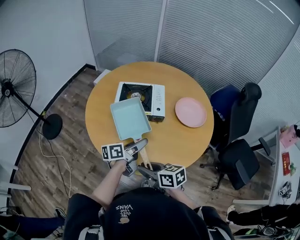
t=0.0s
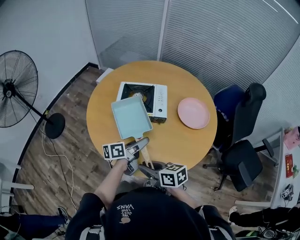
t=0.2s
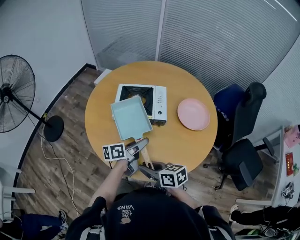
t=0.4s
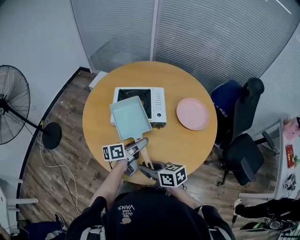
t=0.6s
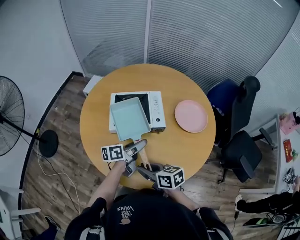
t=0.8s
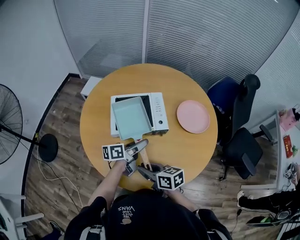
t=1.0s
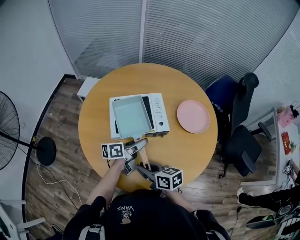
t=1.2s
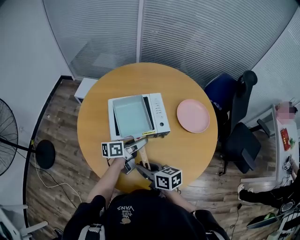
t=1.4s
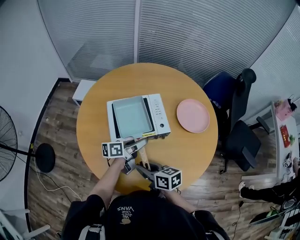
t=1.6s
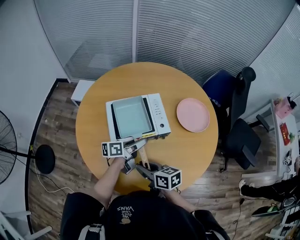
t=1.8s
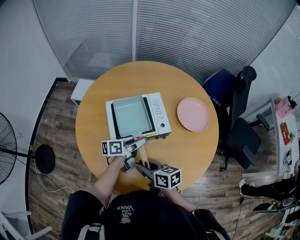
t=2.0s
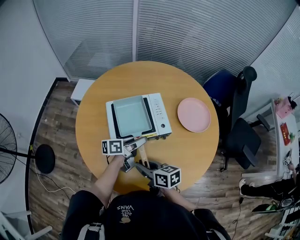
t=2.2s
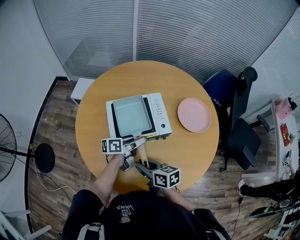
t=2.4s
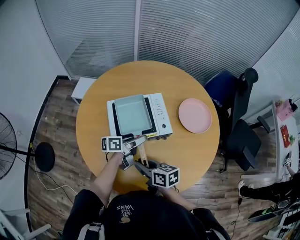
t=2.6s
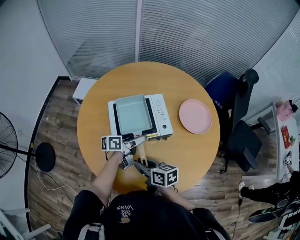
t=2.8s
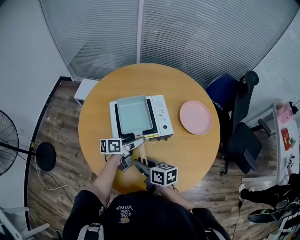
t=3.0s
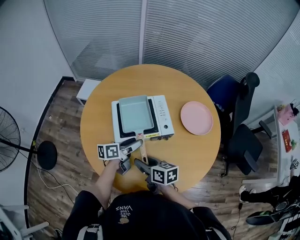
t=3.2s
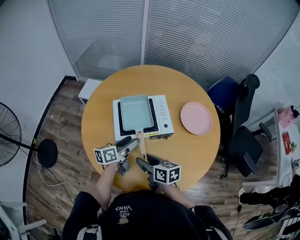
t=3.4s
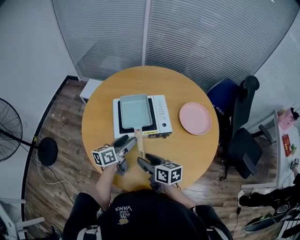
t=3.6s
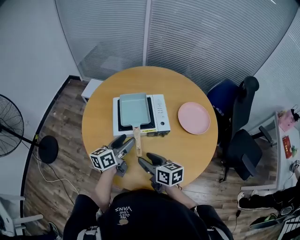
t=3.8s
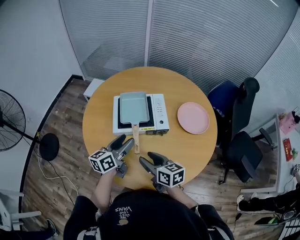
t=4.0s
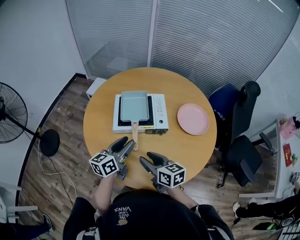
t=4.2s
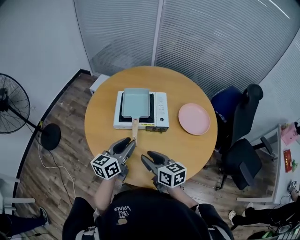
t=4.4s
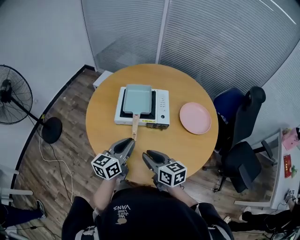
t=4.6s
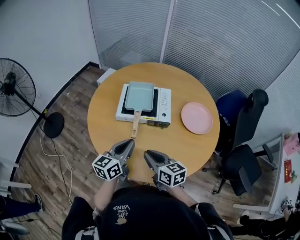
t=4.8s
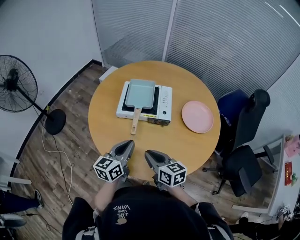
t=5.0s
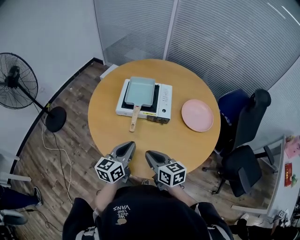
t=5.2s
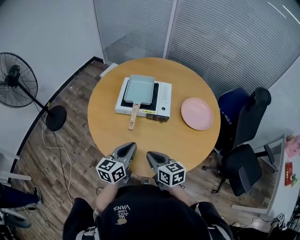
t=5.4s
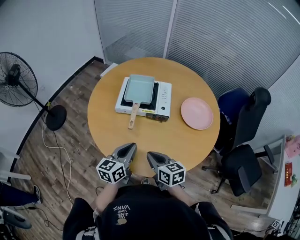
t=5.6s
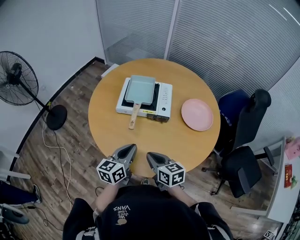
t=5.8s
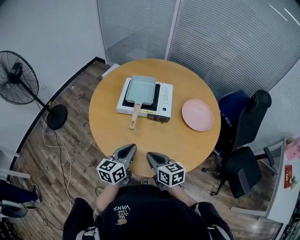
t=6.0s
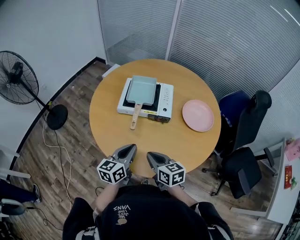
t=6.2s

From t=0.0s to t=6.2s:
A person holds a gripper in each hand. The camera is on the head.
From t=0.0s to t=1.6s: The right gripper travels forward and to the left by some 20 cm, and swivels about 20 degrees; the left gripper shifts about 15 cm forward, and turns by about 20 degrees.
From t=1.6s to t=3.2s: The grippers stay close to where they were, moving slightly.
From t=3.2s to t=4.6s: The right gripper goes some 15 cm backward, to the right and upward, and changes its angle by roughly 20 degrees. Meanwhile the left gripper moves backward and upward, approximately 15 cm, rotates approximately 40 degrees, and closes its fingers.
From t=4.6s to t=6.2s: The right gripper changes place by about 5 cm, and closes. The left gripper is displaced backward by about 5 cm.

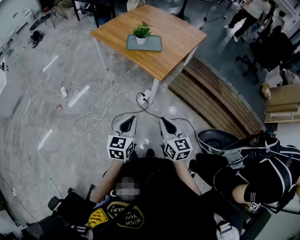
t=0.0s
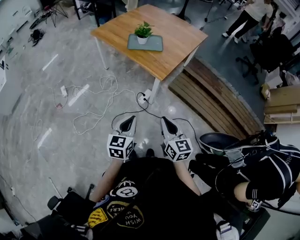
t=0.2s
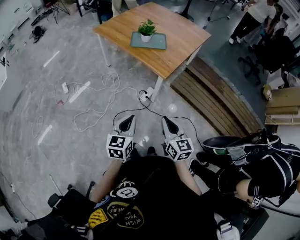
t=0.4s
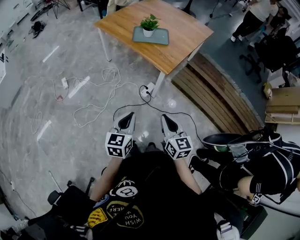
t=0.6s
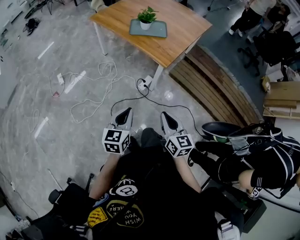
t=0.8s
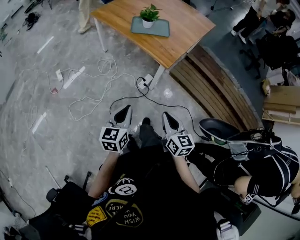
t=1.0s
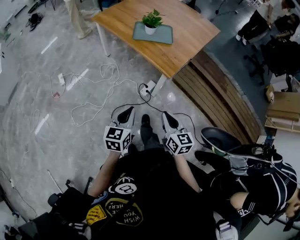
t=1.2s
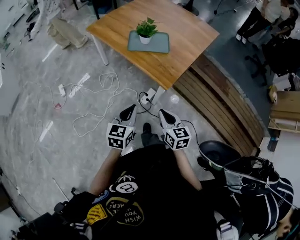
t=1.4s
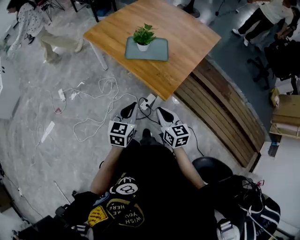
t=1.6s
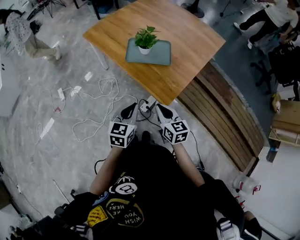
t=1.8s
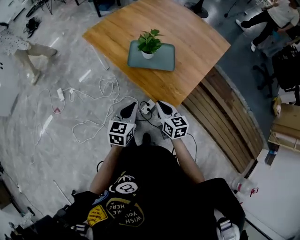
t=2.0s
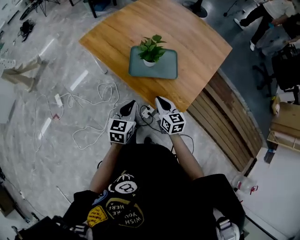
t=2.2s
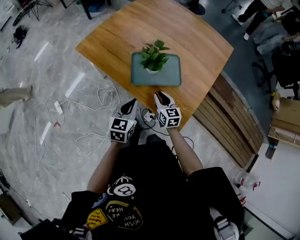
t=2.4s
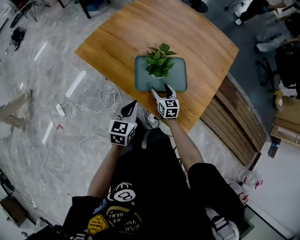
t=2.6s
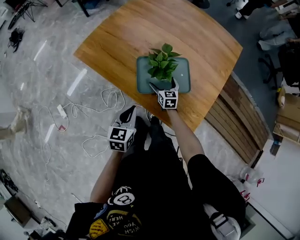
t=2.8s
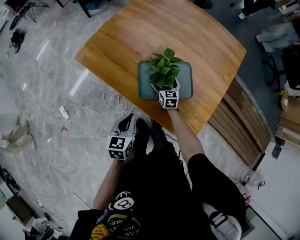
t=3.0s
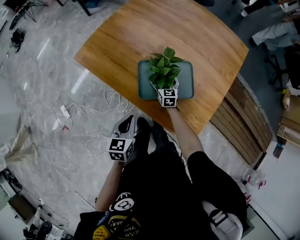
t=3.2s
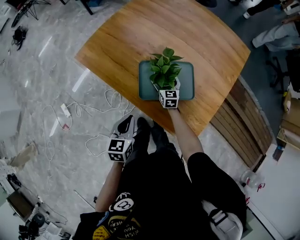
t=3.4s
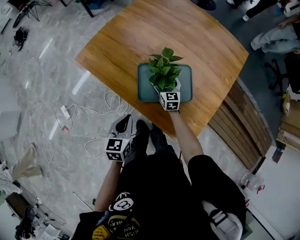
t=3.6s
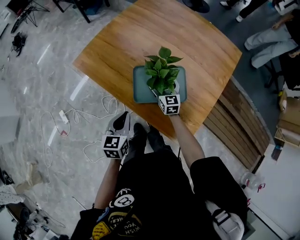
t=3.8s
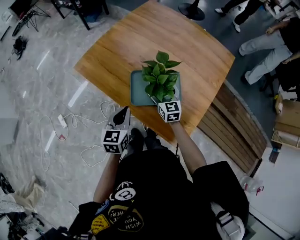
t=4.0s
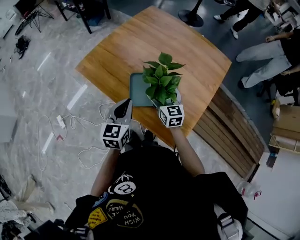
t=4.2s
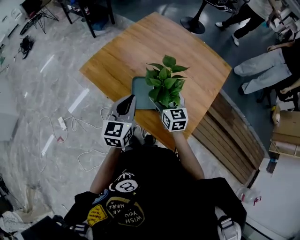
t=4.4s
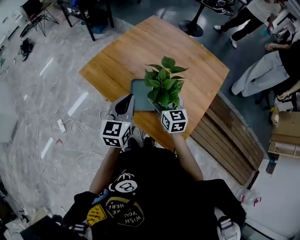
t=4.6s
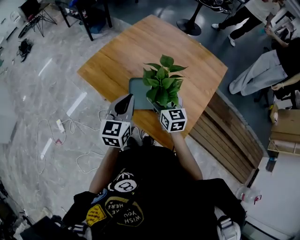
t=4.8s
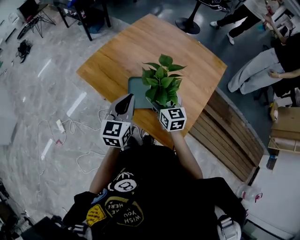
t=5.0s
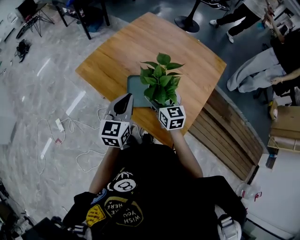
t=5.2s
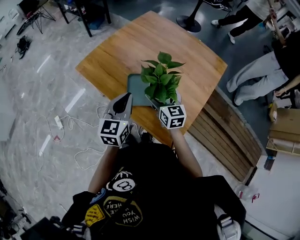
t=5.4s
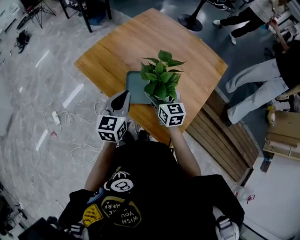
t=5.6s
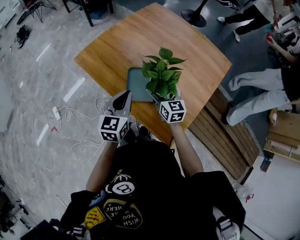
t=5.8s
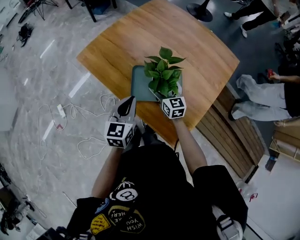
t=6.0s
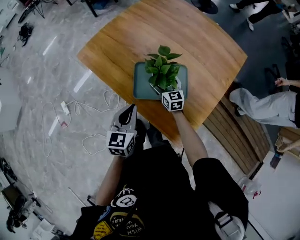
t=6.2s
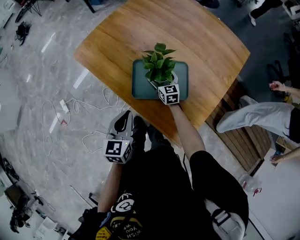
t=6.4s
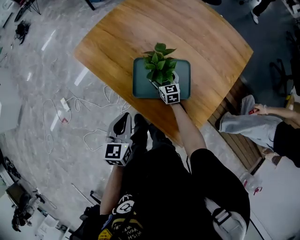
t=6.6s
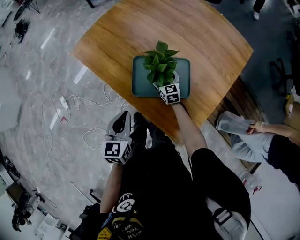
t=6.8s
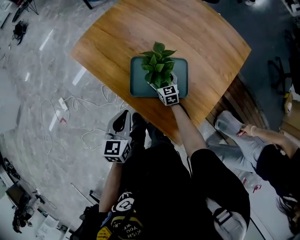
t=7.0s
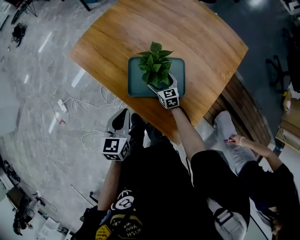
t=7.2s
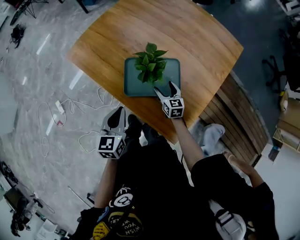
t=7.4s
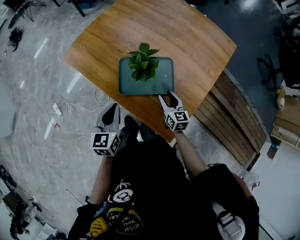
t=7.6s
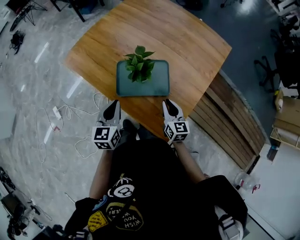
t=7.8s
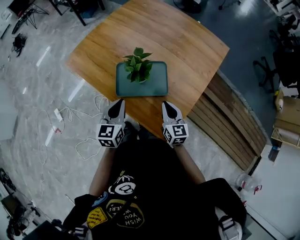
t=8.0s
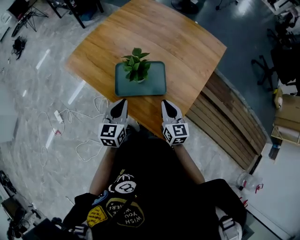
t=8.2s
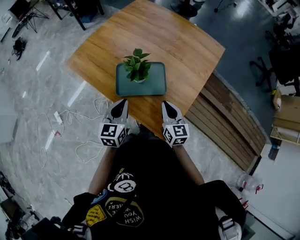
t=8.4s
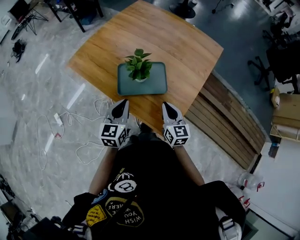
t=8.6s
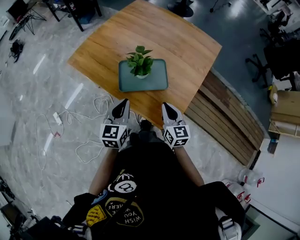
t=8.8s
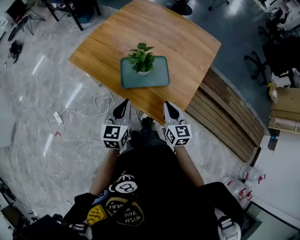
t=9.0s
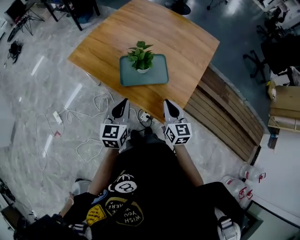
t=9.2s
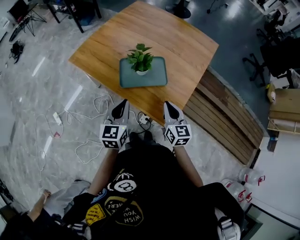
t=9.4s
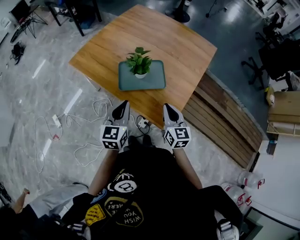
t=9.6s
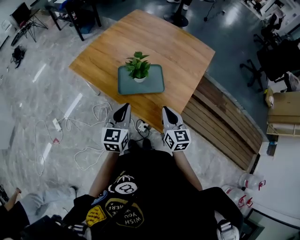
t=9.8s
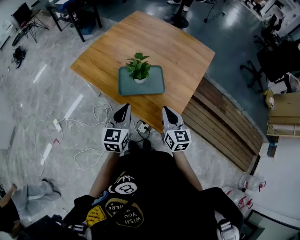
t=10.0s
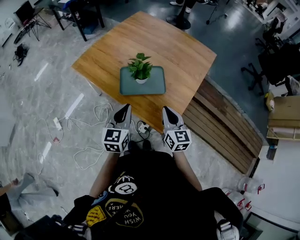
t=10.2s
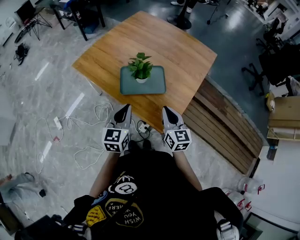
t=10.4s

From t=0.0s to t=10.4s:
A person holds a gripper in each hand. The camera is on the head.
From t=0.0s to t=1.4s: The two grippers go some 20 cm forward.
From t=1.4s to t=3.0s: The two grippers travel together, forward, some 50 cm. The right gripper opens up.
From t=3.0s to t=4.4s: Both grippers travel together upward, some 20 cm. The left gripper swivels approximately 20 degrees.
From t=4.4s to t=6.0s: Both grippers travel together downward, roughly 10 cm.
From t=6.0s to t=7.4s: The right gripper heads downward and to the right, covering some 15 cm; the left gripper moves downward, some 5 cm.
From t=7.4s to t=9.0s: The left gripper travels backward and upward by about 10 cm; the right gripper goes some 30 cm upward and backward, and closes its fingers.
From t=9.0s to t=10.4s: The grippers stay close to where they were, moving slightly.

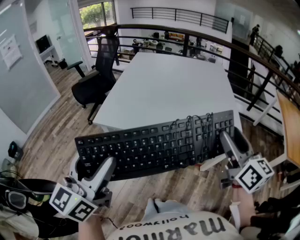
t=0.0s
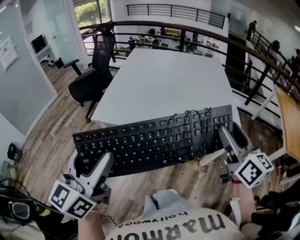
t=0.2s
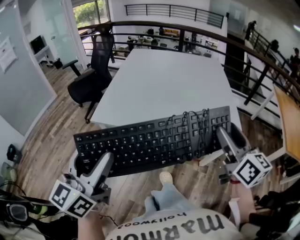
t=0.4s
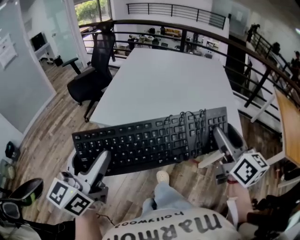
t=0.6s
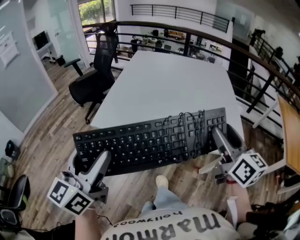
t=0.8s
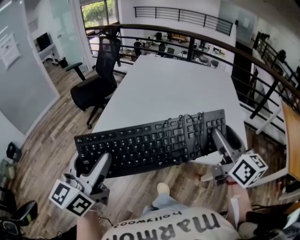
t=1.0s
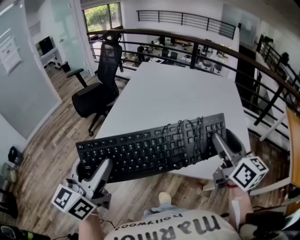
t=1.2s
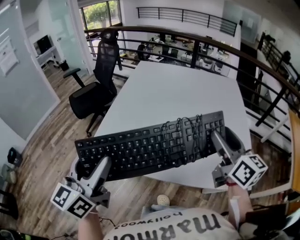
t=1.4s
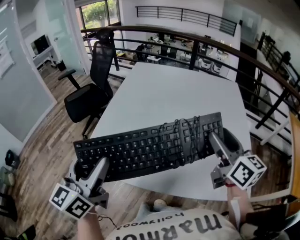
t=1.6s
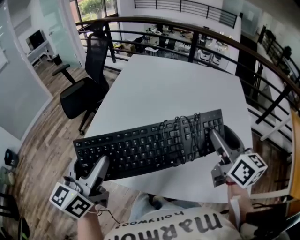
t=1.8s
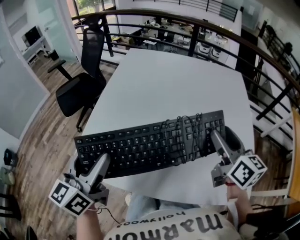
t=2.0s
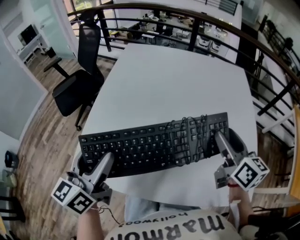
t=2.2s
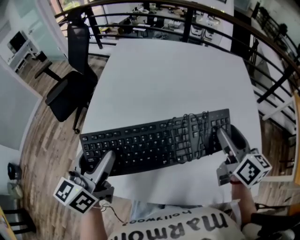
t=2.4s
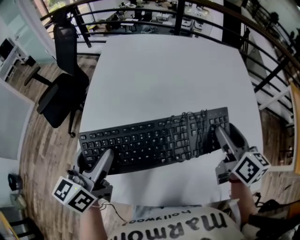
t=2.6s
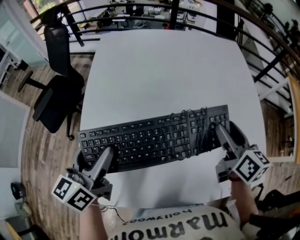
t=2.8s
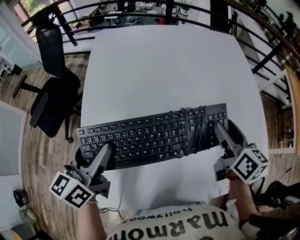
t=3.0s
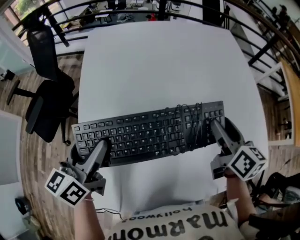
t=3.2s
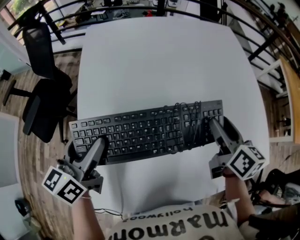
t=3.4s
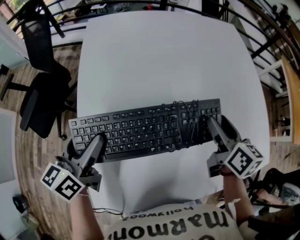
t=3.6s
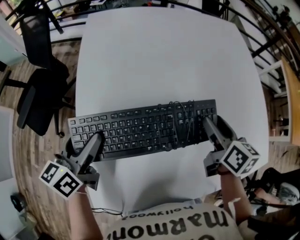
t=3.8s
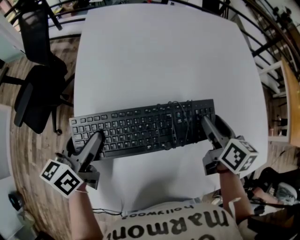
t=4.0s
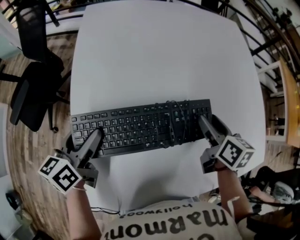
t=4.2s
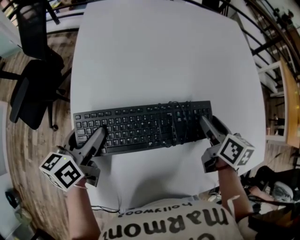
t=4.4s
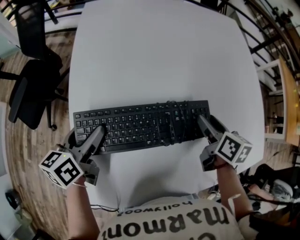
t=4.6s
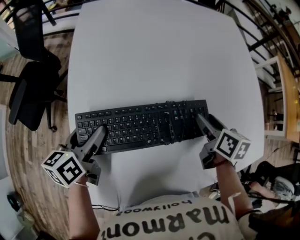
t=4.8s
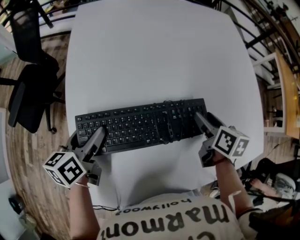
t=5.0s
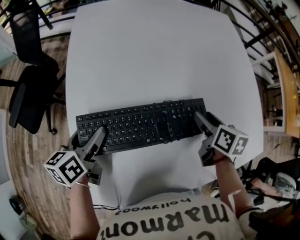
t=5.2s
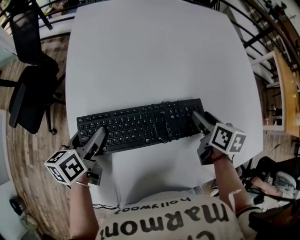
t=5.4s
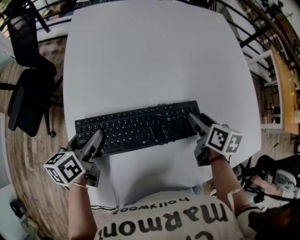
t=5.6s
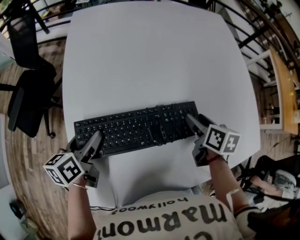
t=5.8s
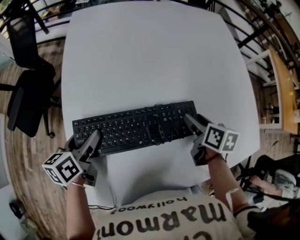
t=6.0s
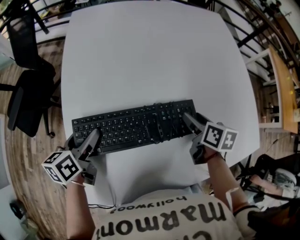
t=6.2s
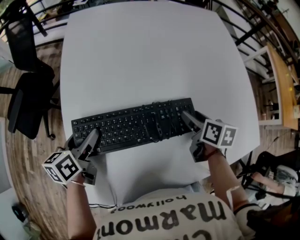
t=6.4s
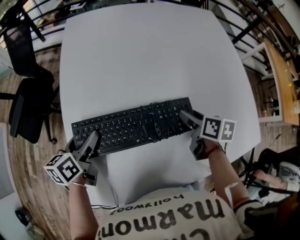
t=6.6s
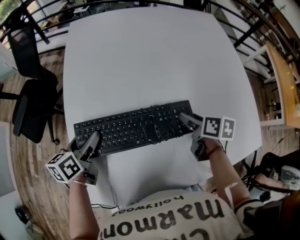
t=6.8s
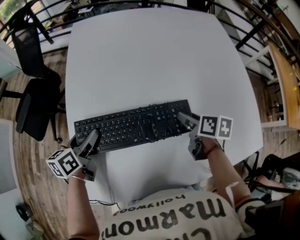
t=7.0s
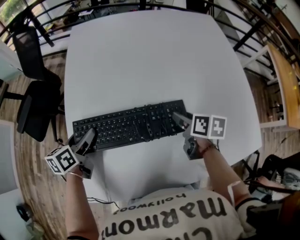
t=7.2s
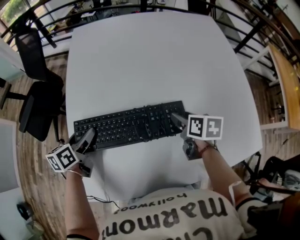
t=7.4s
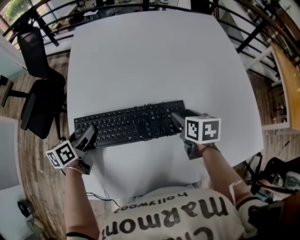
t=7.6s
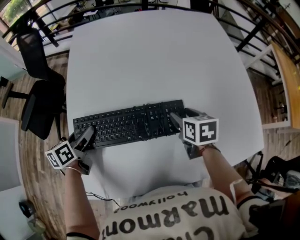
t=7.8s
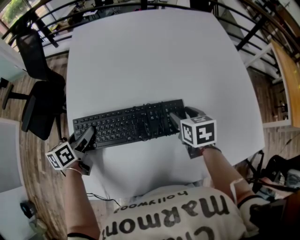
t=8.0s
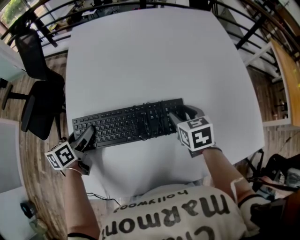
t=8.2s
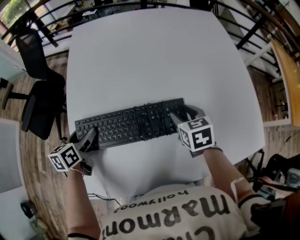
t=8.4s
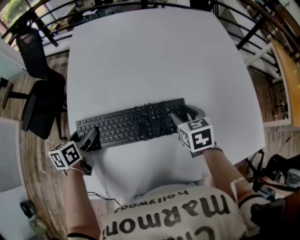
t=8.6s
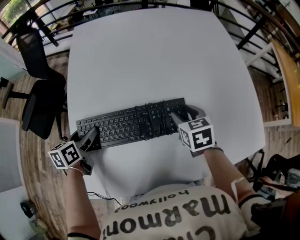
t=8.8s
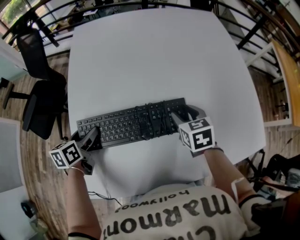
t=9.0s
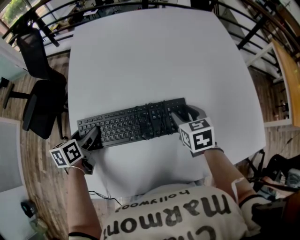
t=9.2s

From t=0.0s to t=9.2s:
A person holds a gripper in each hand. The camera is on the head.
From t=0.0s to t=6.2s: There are only small adjustments of the grippers.
From t=6.2s to t=7.6s: There are only small adjustments of the grippers.
From t=7.6s to t=9.2s: The right gripper turns by some 20 degrees.
